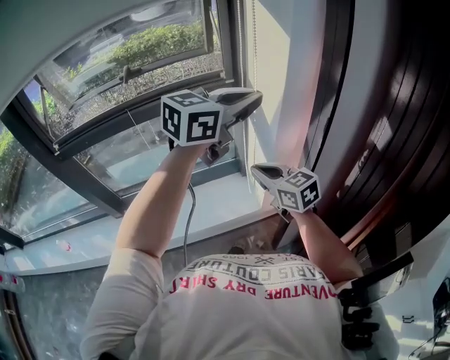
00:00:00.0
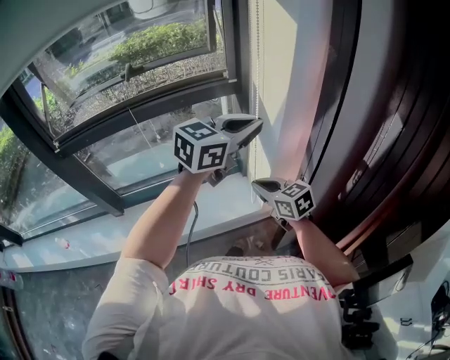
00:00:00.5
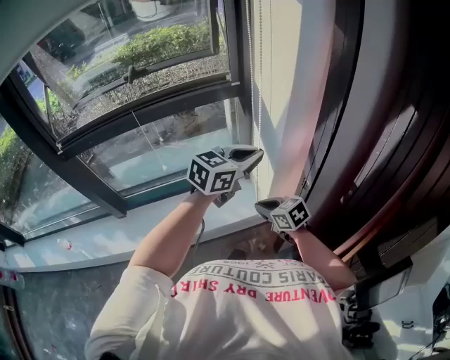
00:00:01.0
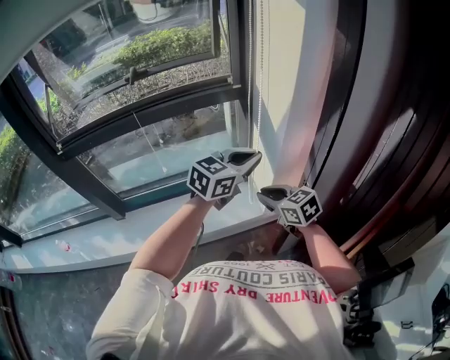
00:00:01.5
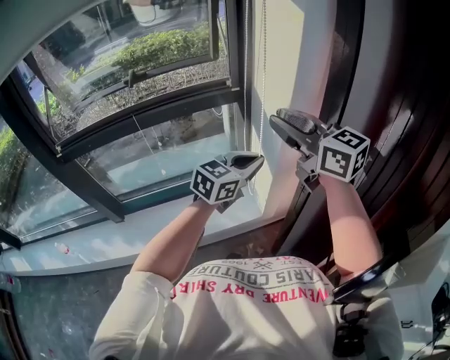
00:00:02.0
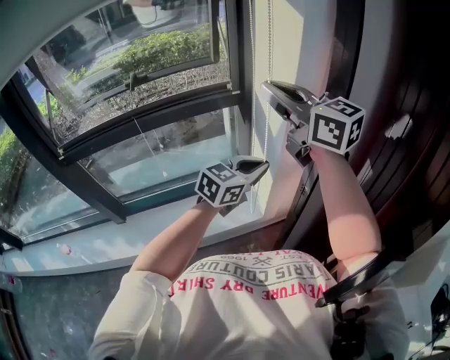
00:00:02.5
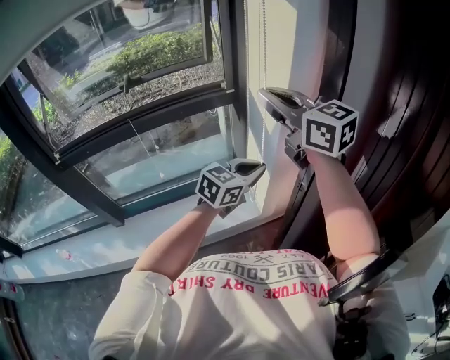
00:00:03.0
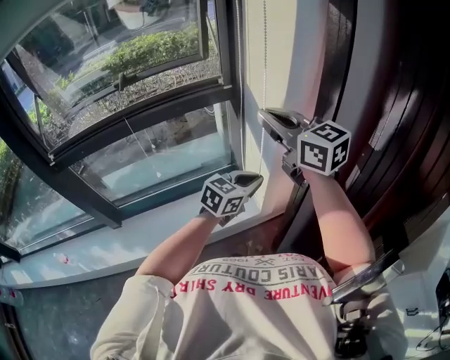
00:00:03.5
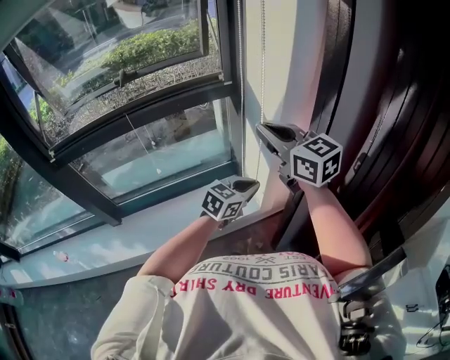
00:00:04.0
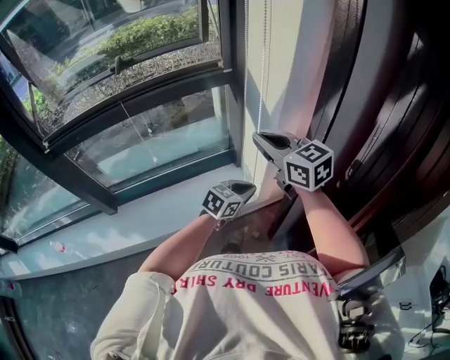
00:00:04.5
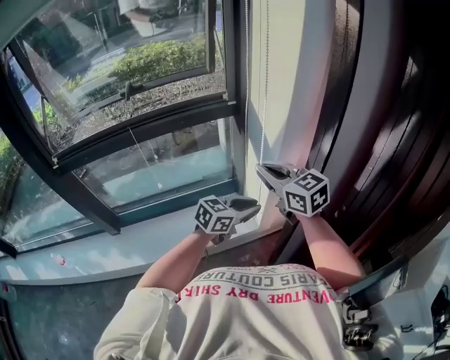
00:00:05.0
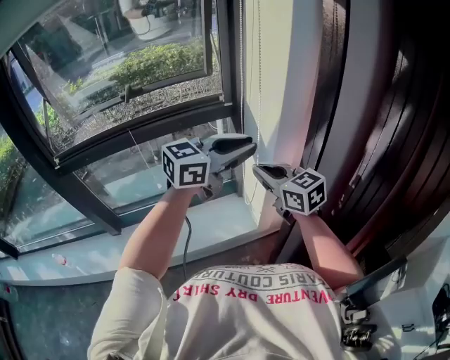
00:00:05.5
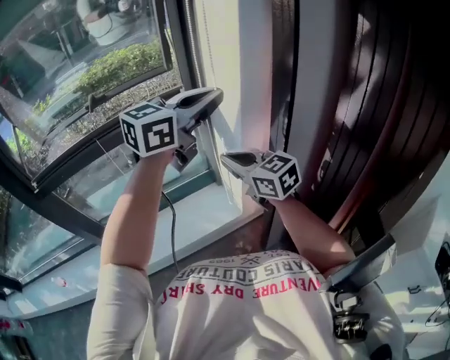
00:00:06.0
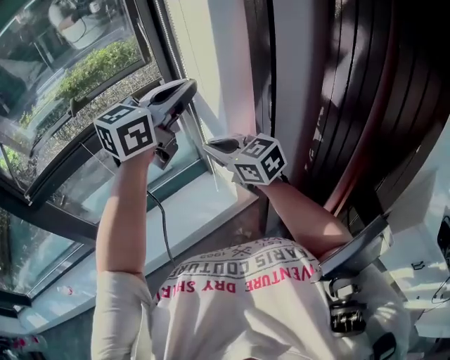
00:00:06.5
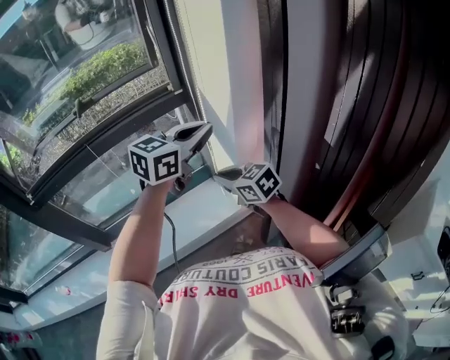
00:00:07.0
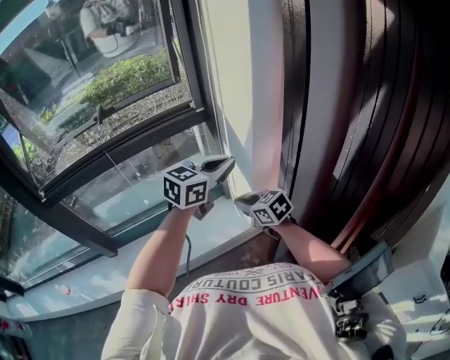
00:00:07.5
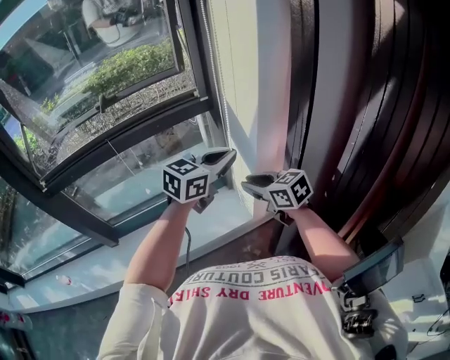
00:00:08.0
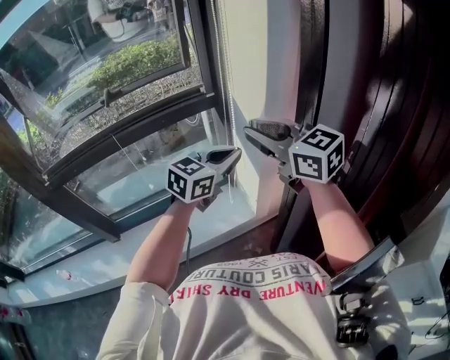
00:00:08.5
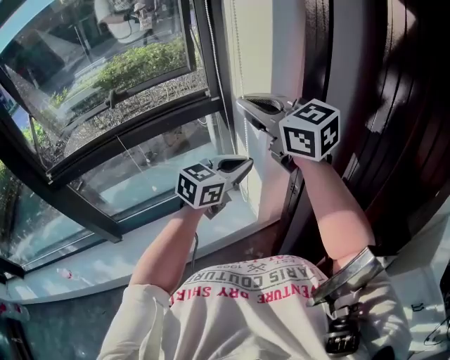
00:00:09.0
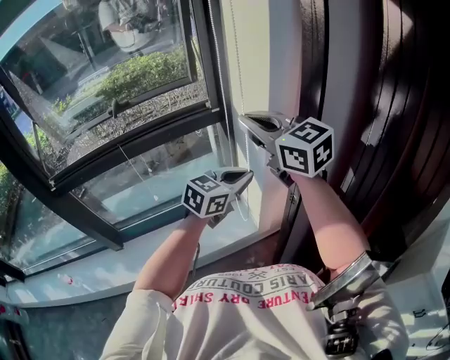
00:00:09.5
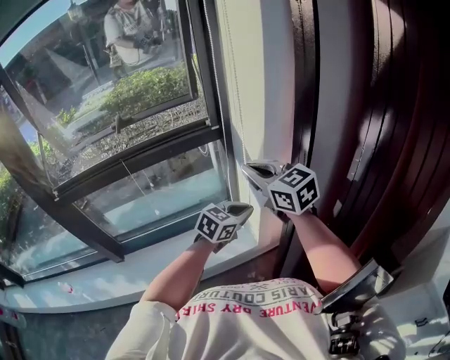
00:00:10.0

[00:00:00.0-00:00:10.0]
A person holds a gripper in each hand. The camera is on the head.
00:00:00.0 to 00:00:02.0: The right gripper is displaced upward by about 20 cm, and opens its fingers. The left gripper goes about 15 cm downward.
00:00:02.0 to 00:00:04.0: The left gripper heads downward, covering some 15 cm. The right gripper shifts roughly 5 cm downward, and closes.
00:00:04.0 to 00:00:06.0: The right gripper moves downward, approximately 5 cm. Meanwhile the left gripper moves upward, roughly 35 cm, and turns by roughly 20 degrees.
00:00:06.0 to 00:00:08.0: The right gripper moves downward, some 10 cm; the left gripper shifts roughly 15 cm downward.
00:00:08.0 to 00:00:10.0: The left gripper heads downward, covering approximately 10 cm. Meanwhile the right gripper moves upward, approximately 15 cm, and swivels approximately 20 degrees.

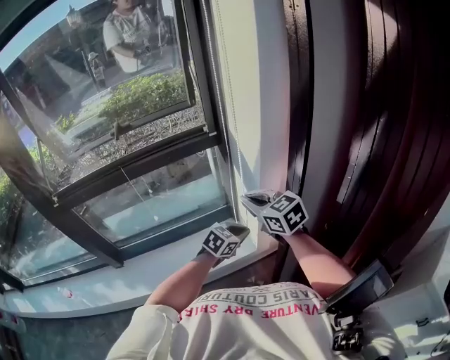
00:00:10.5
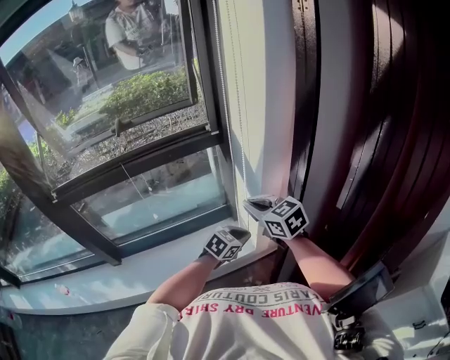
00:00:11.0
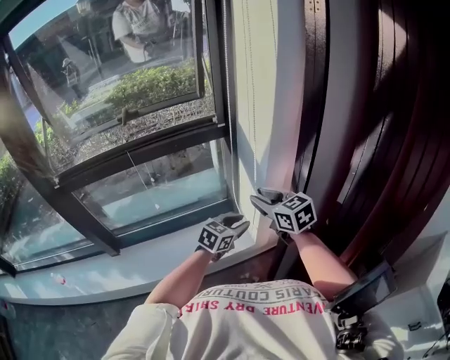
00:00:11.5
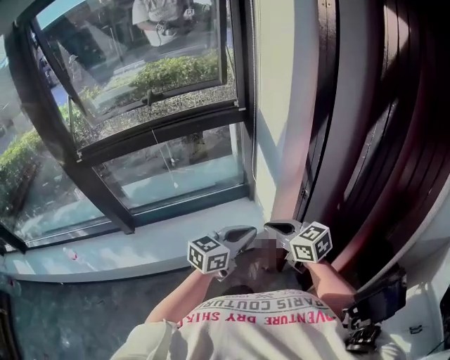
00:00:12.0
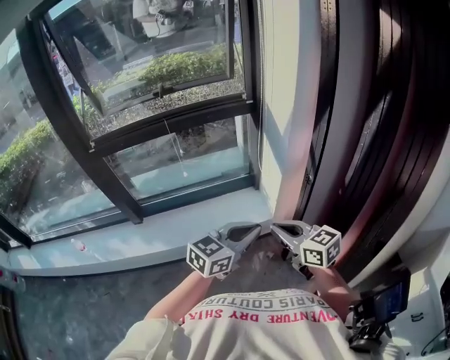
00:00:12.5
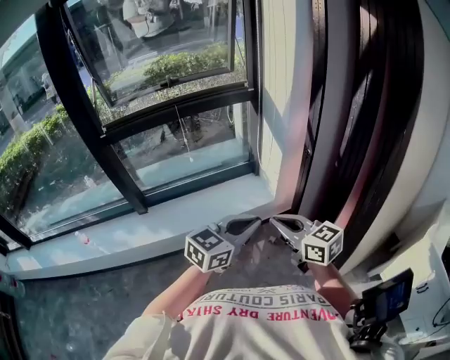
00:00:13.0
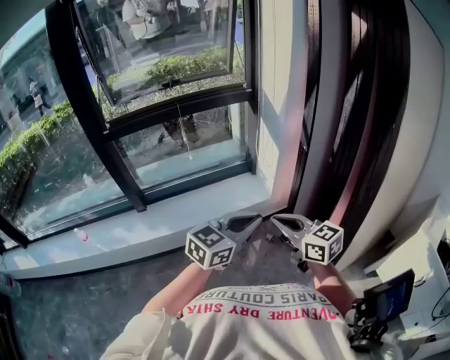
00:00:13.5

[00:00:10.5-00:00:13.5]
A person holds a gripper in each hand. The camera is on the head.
00:00:10.5 to 00:00:12.0: The right gripper goes some 20 cm backward and downward, and opens, then closes once more. Meanwhile the left gripper heads backward and upward, covering roughly 20 cm, rotates approximately 30 degrees, and opens, then closes once more.
00:00:12.0 to 00:00:13.5: The two grippers go some 25 cm backward.

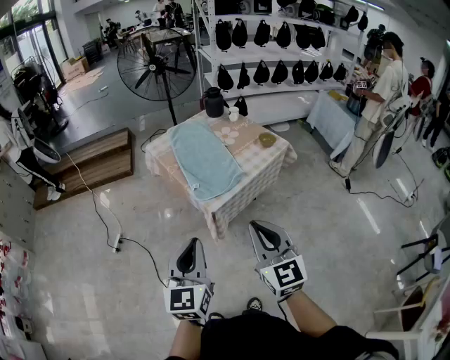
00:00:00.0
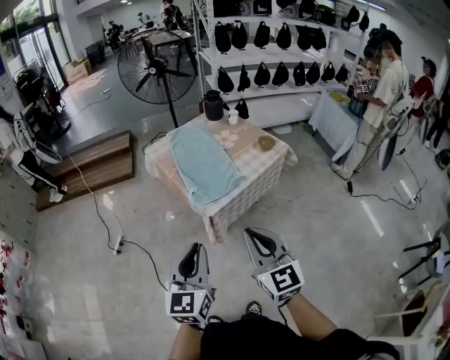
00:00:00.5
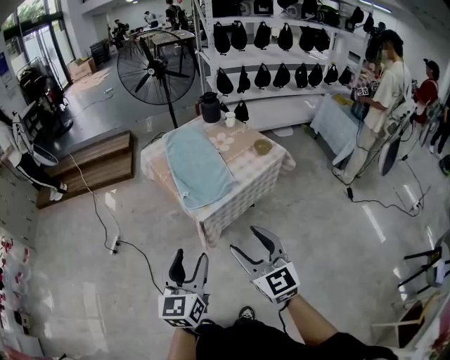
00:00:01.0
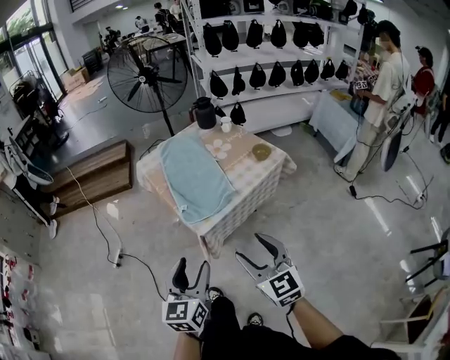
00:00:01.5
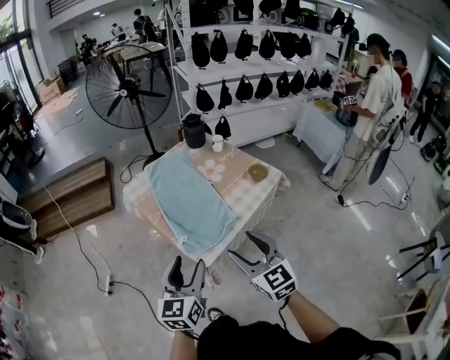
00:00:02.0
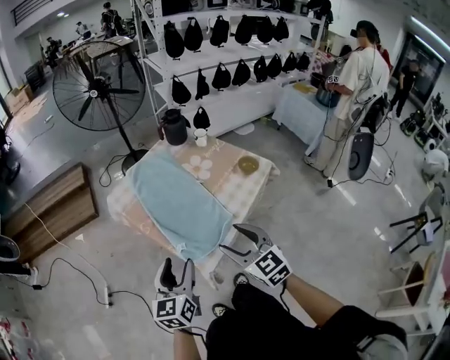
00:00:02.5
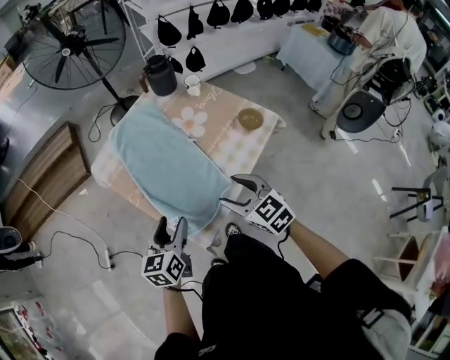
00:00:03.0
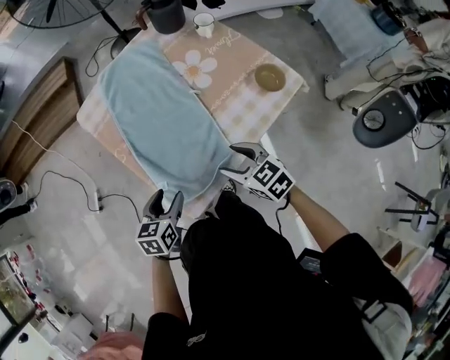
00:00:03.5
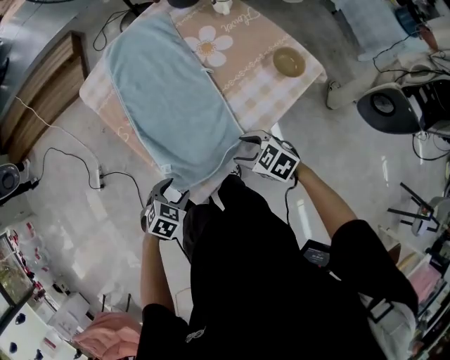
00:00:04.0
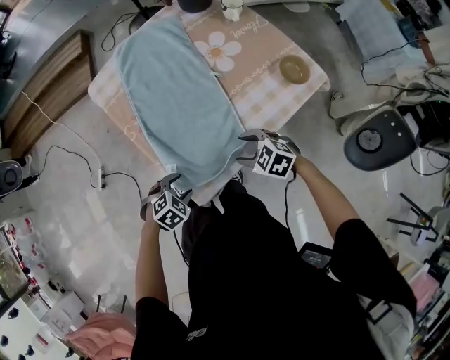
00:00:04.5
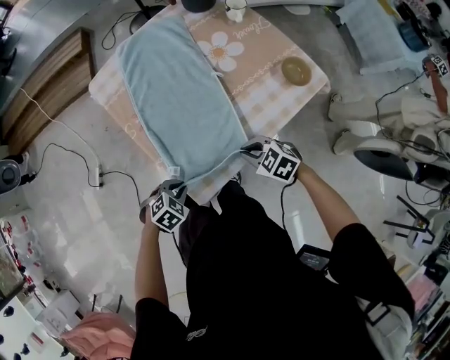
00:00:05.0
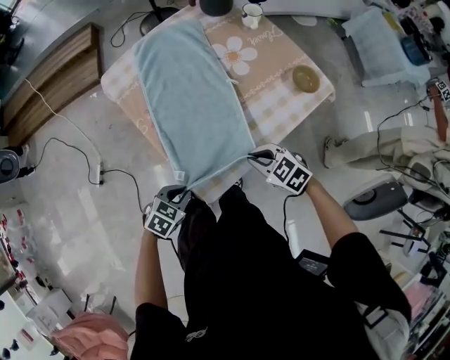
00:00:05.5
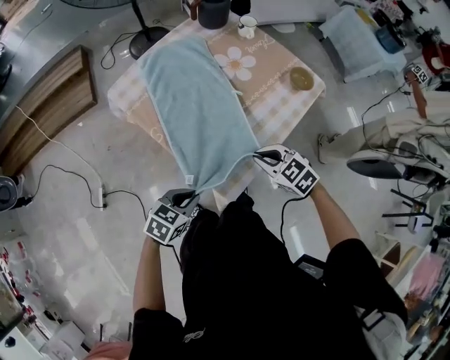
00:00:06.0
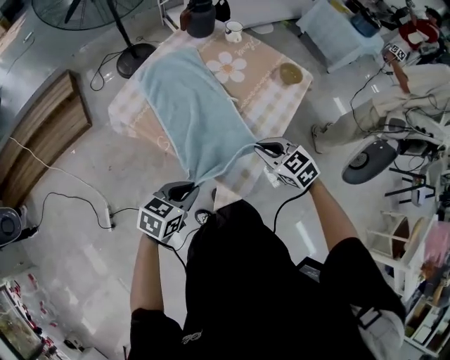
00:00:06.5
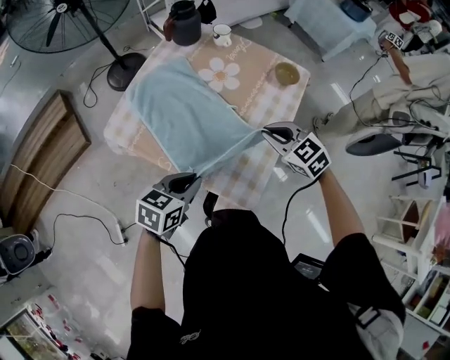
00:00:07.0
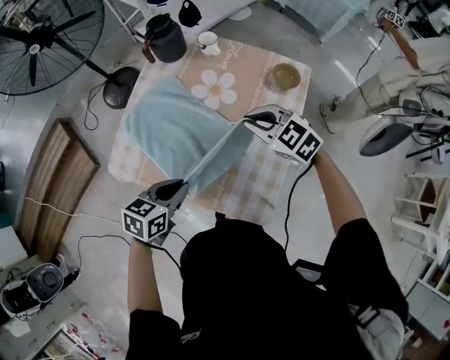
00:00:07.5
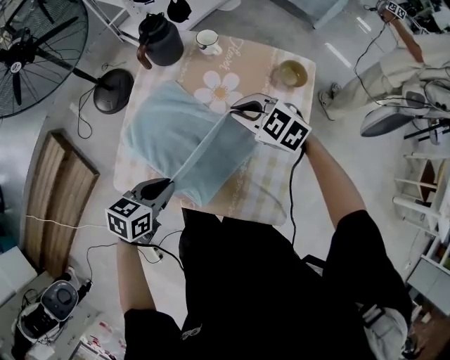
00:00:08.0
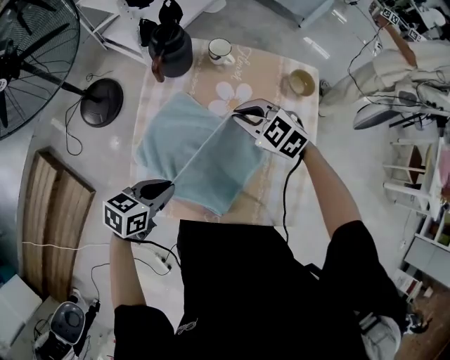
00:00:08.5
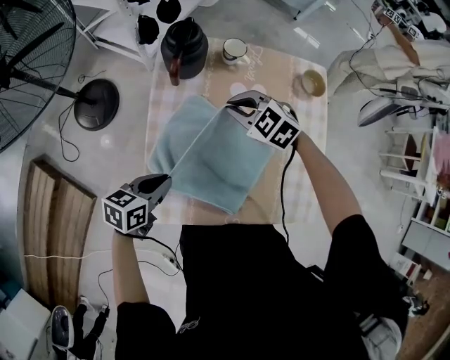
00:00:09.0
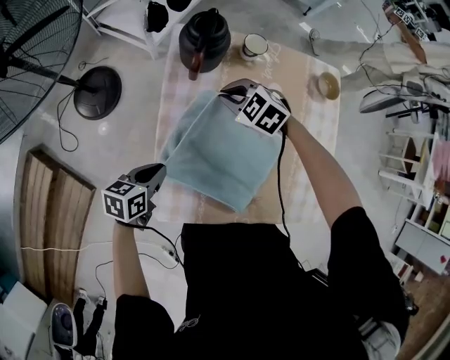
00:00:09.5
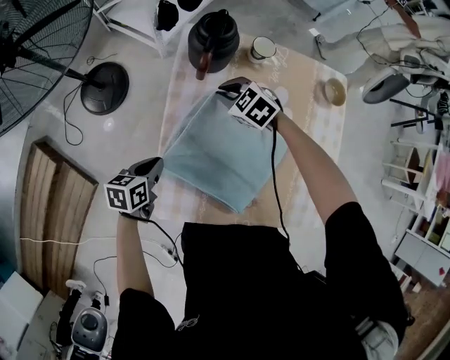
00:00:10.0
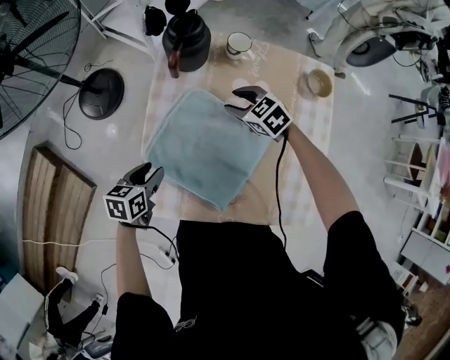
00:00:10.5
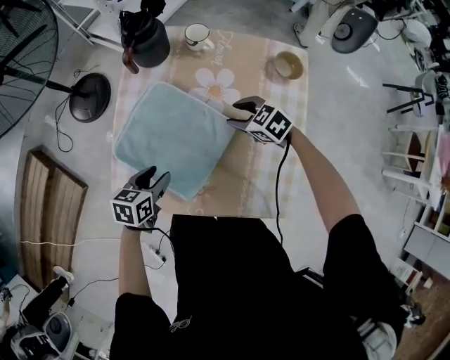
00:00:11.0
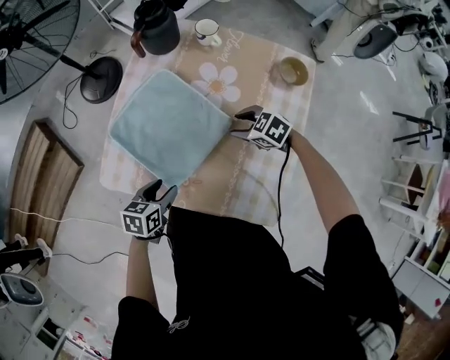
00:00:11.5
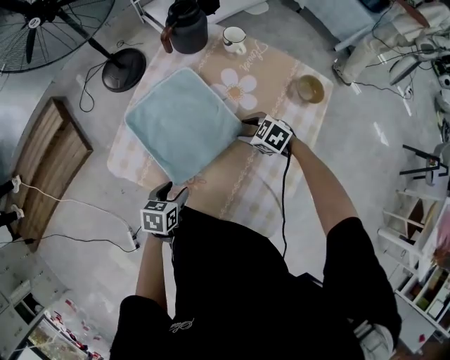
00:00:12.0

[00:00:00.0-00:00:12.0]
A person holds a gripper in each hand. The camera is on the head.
00:00:00.0 to 00:00:02.0: Both grippers travel together forward, about 25 cm. The right gripper opens up, while the left gripper opens up.
00:00:02.0 to 00:00:04.0: The grippers both shift downward and forward by roughly 40 cm. The right gripper points its fingers some 40 degrees further downward. Meanwhile the left gripper tips its fingers downward by roughly 60 degrees.
00:00:04.0 to 00:00:06.0: The right gripper ends up roughly 10 cm from where it was, and closes up. The left gripper moves about 10 cm, swivels approximately 20 degrees, and closes its fingers.
00:00:06.0 to 00:00:08.0: The left gripper shifts some 35 cm forward and to the left. The right gripper travels forward by roughly 30 cm.
00:00:08.0 to 00:00:10.0: Both grippers move to the left, forward and downward, roughly 30 cm.
00:00:10.0 to 00:00:12.0: The left gripper changes place by some 35 cm, and opens; the right gripper changes place by about 30 cm, rotates about 20 degrees, and opens.

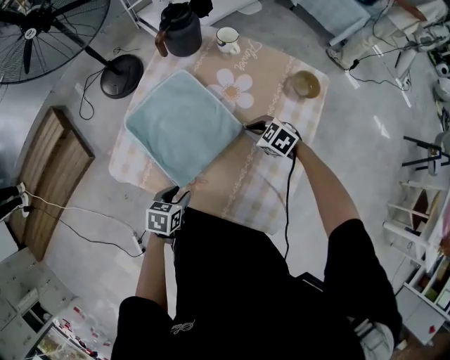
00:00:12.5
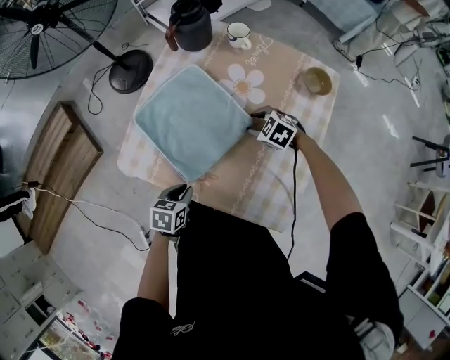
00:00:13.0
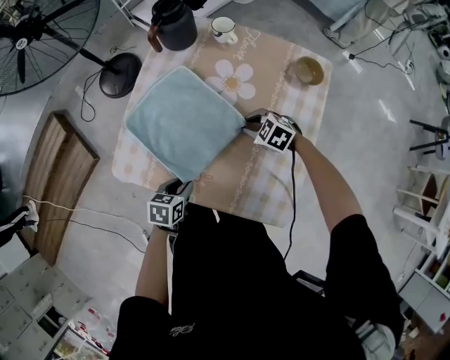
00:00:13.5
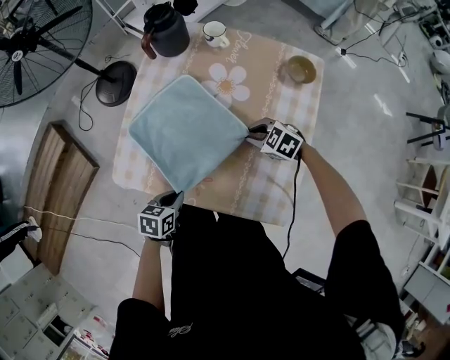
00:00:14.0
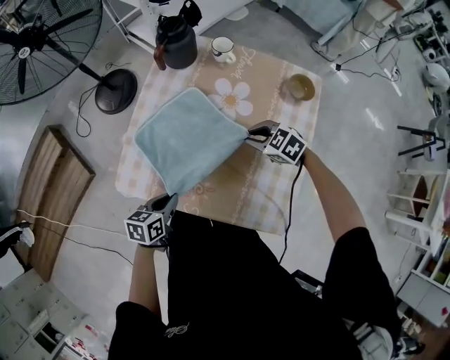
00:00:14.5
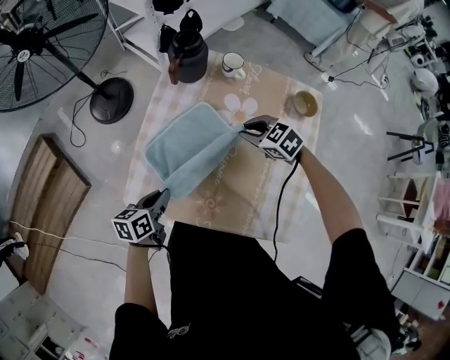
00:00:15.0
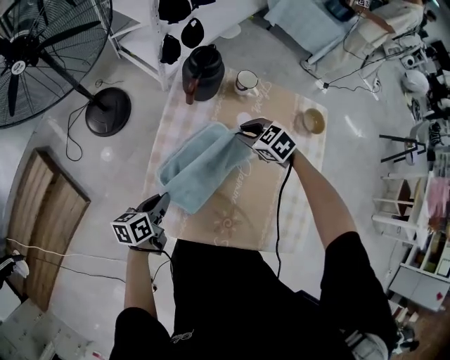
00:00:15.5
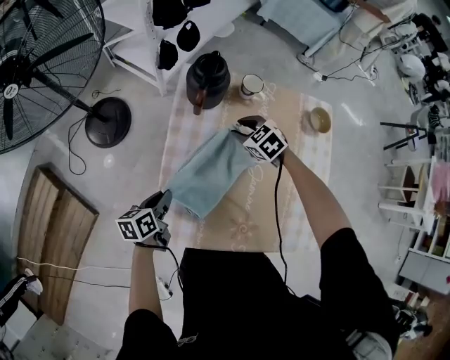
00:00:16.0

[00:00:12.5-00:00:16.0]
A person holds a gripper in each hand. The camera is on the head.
00:00:12.5 to 00:00:14.5: The grippers both shift upward by approximately 5 cm. The right gripper opens, then closes again; the left gripper closes up.
00:00:14.5 to 00:00:16.0: The grippers both shift forward and to the left by some 25 cm. The right gripper turns by about 20 degrees.
